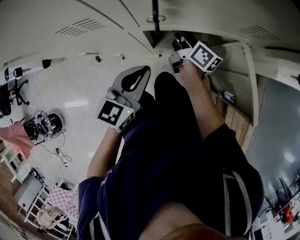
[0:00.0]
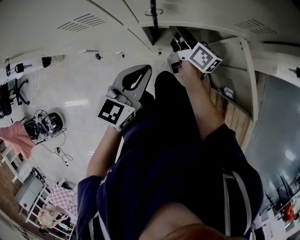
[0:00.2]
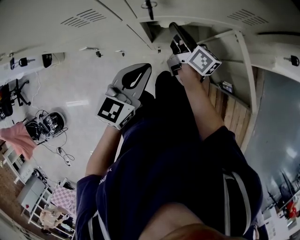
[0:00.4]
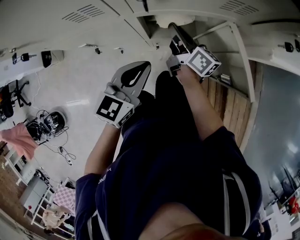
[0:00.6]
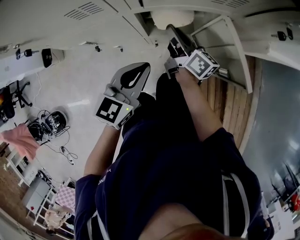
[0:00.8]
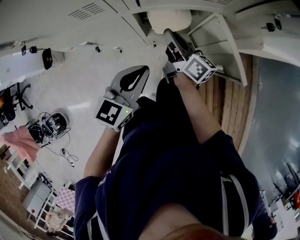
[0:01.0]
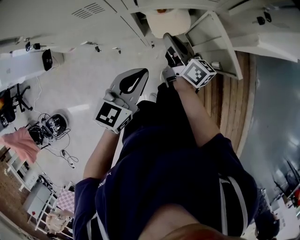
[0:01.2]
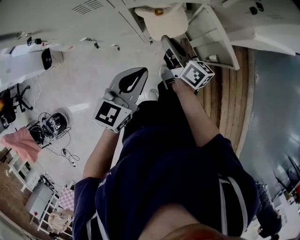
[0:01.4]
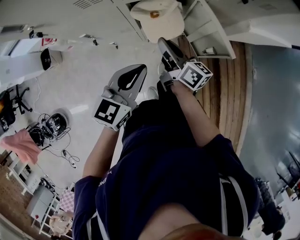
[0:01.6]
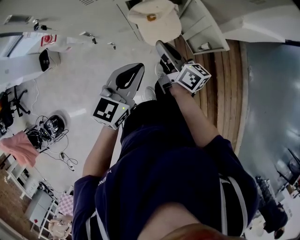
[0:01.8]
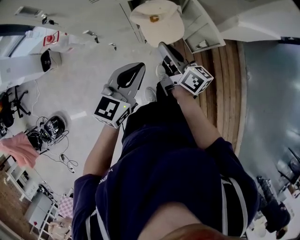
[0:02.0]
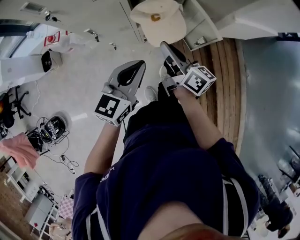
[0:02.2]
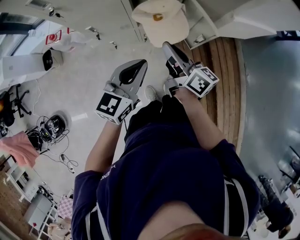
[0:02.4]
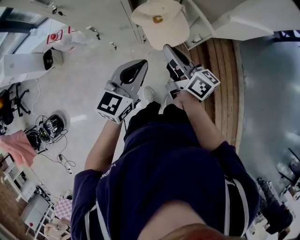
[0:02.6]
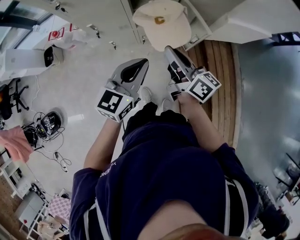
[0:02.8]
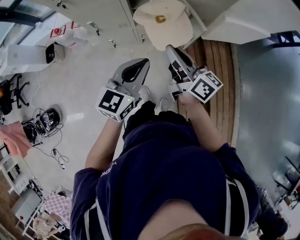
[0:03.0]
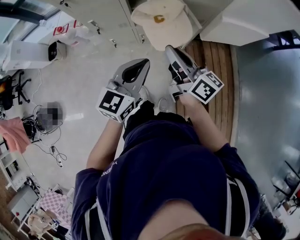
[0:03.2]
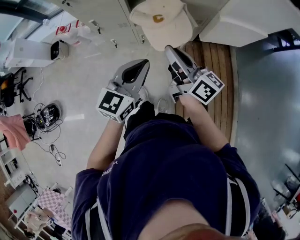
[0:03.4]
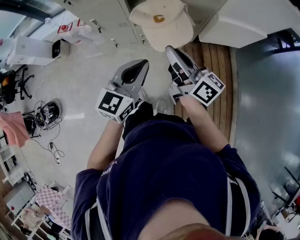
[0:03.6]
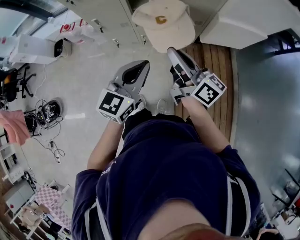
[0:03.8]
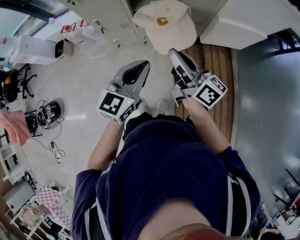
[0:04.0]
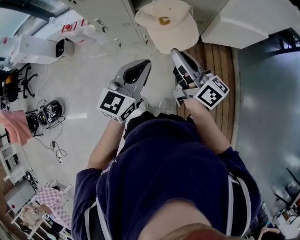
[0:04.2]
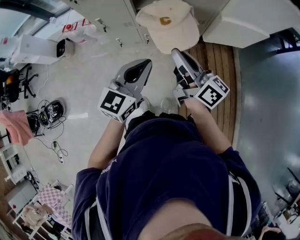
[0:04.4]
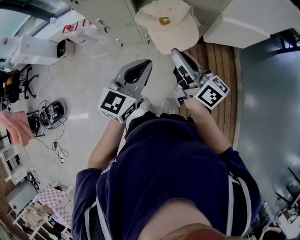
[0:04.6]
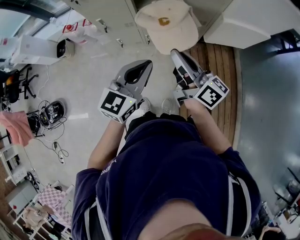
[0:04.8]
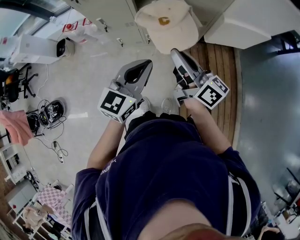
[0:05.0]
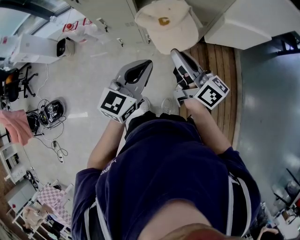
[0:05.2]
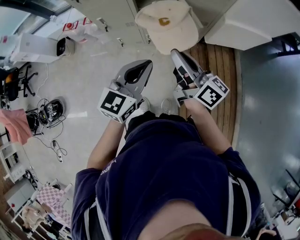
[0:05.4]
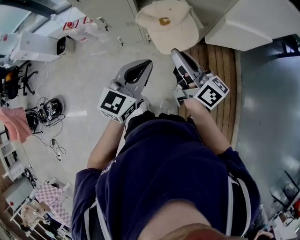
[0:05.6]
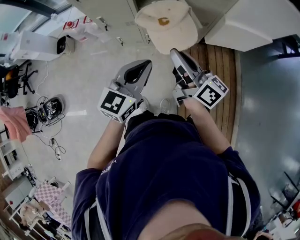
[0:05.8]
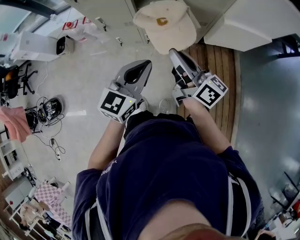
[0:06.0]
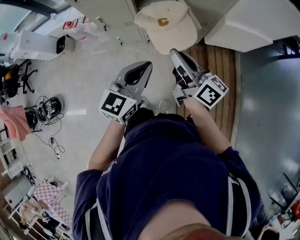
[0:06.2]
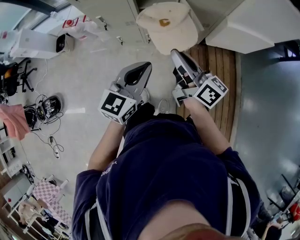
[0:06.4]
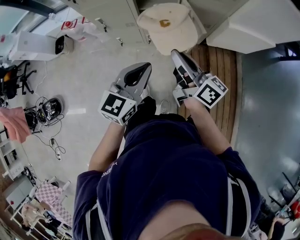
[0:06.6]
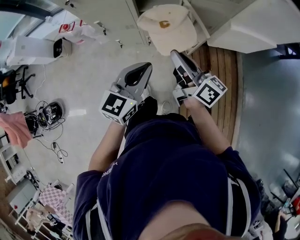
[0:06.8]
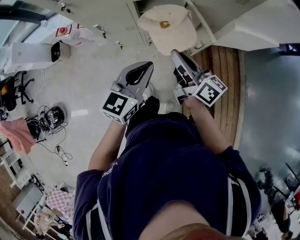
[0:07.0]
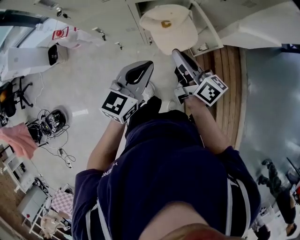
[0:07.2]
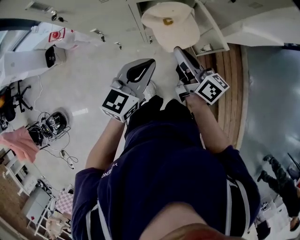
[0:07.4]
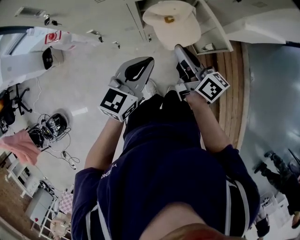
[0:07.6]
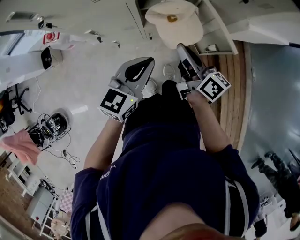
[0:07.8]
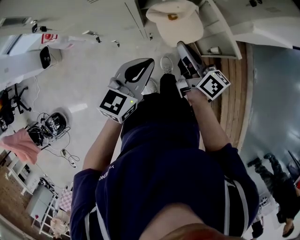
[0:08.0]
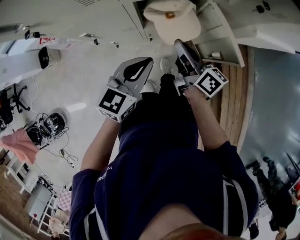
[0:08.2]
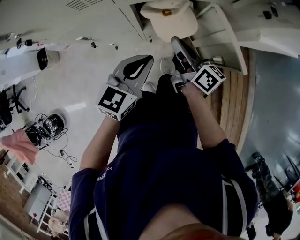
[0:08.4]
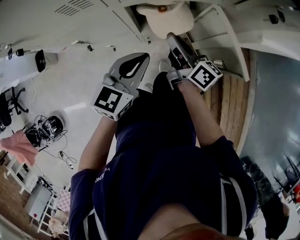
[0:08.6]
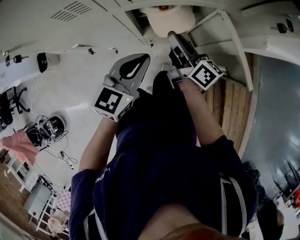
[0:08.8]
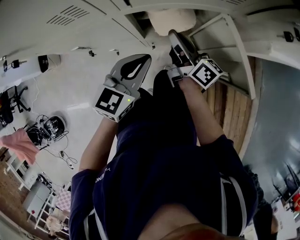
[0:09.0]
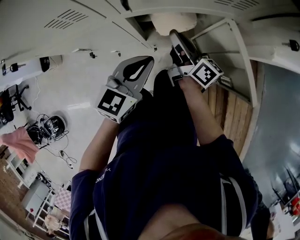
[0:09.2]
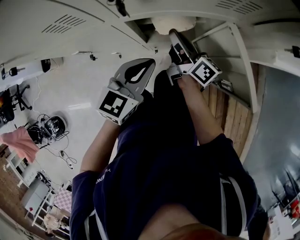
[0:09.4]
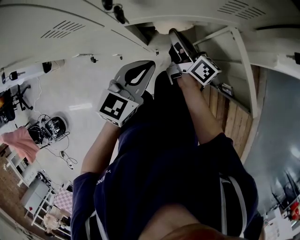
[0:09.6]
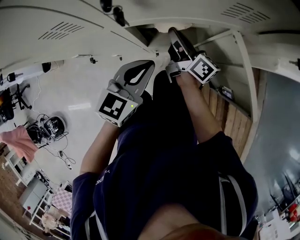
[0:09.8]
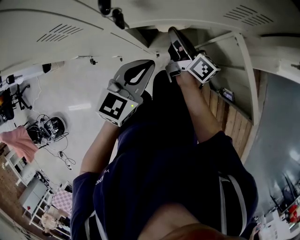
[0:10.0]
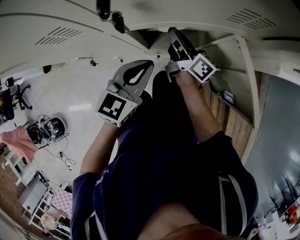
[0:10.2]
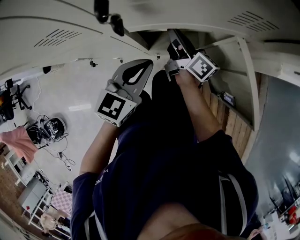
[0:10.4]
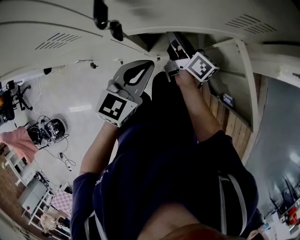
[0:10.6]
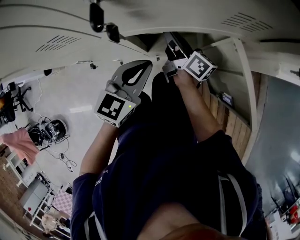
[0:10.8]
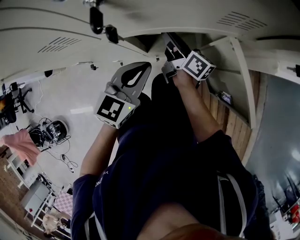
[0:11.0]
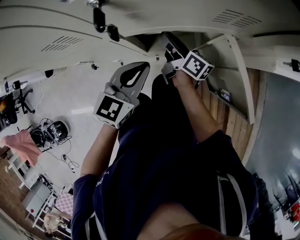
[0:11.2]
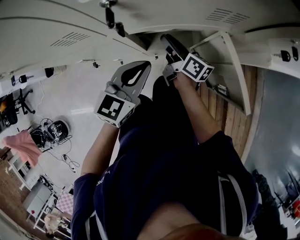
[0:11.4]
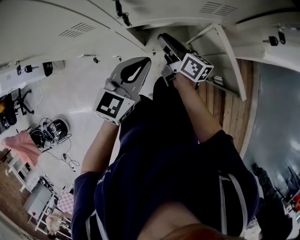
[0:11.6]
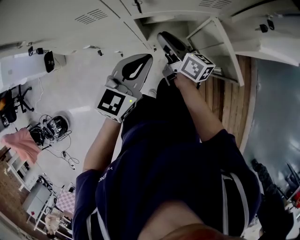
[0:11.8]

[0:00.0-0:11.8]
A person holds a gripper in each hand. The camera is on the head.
0:00.0 to 0:01.4: The grippers both shift backward and upward by some 20 cm.
0:01.4 to 0:03.0: The grippers both shift backward, upward and to the right by about 25 cm.
0:03.0 to 0:04.4: The right gripper moves backward and upward, roughly 10 cm; the left gripper goes approximately 5 cm backward.
0:04.4 to 0:06.0: The grippers move only a little.
0:06.0 to 0:07.4: The left gripper goes roughly 20 cm forward, to the left and downward. Meanwhile the right gripper heads forward, downward and to the left, covering about 20 cm.
0:07.4 to 0:08.8: Both grippers move forward and downward, some 20 cm.
0:08.8 to 0:10.4: The right gripper heads forward and downward, covering some 15 cm. The left gripper is displaced forward and downward by roughly 10 cm.
0:10.4 to 0:11.8: The grippers both shift upward and backward by some 15 cm.

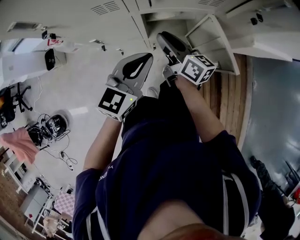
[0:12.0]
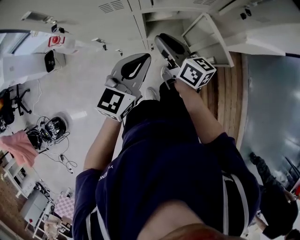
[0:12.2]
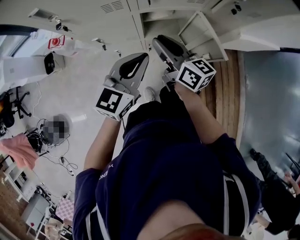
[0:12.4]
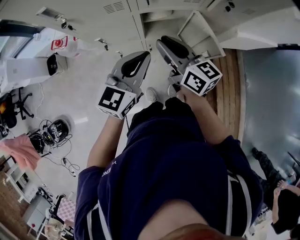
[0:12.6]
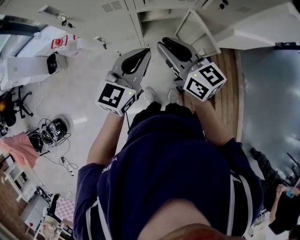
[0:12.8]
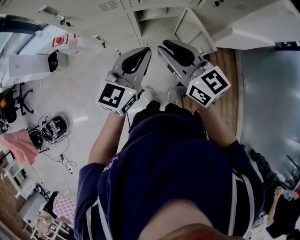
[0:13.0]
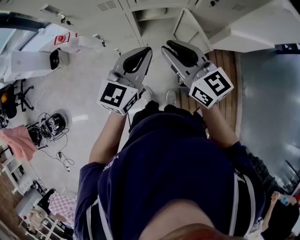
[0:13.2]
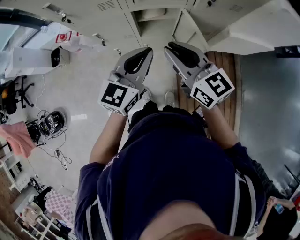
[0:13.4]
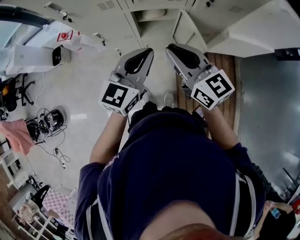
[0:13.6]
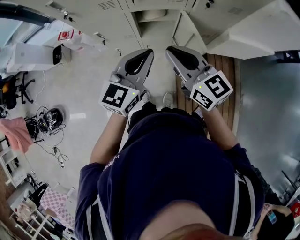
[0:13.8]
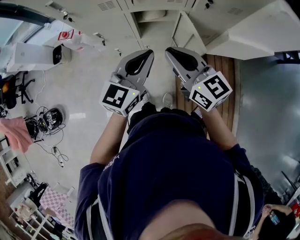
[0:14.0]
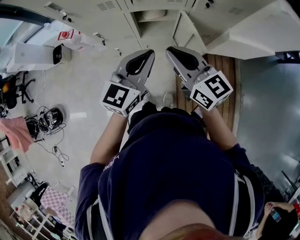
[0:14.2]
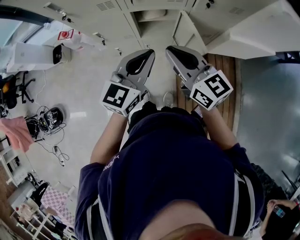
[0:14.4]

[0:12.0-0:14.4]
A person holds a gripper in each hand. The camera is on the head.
0:12.0 to 0:13.2: The left gripper heads upward, backward and to the right, covering roughly 15 cm. Meanwhile the right gripper heads upward and backward, covering roughly 25 cm, and turns by roughly 30 degrees.
0:13.2 to 0:14.4: There are only small adjustments of the grippers.

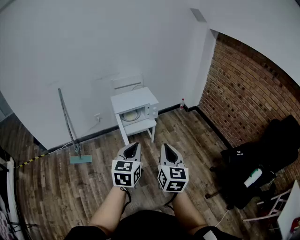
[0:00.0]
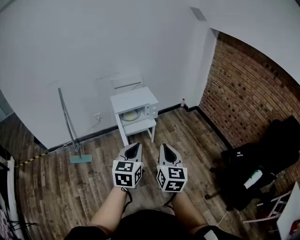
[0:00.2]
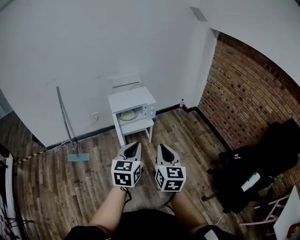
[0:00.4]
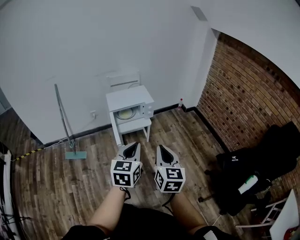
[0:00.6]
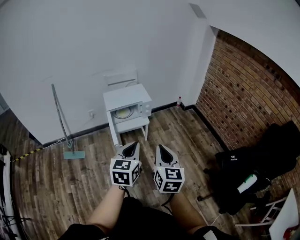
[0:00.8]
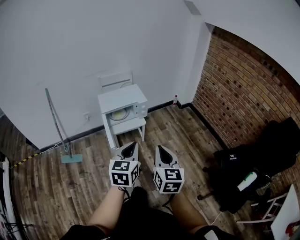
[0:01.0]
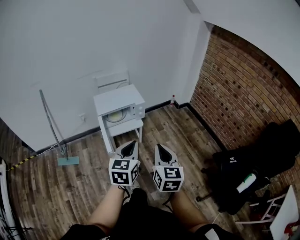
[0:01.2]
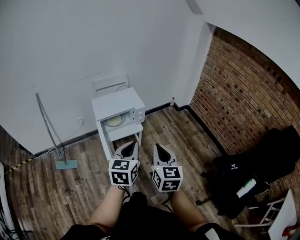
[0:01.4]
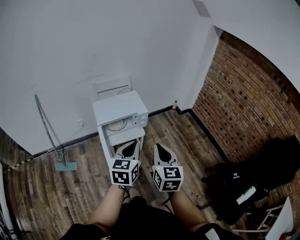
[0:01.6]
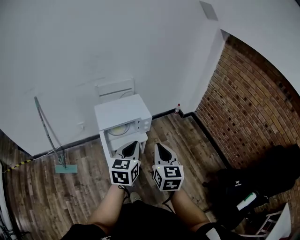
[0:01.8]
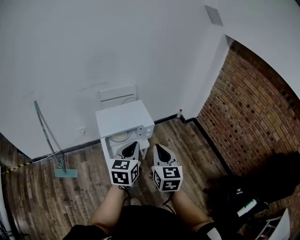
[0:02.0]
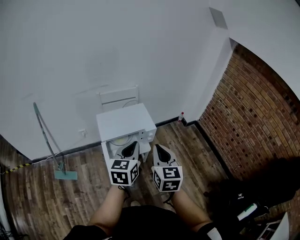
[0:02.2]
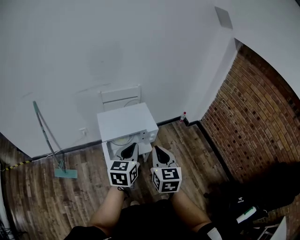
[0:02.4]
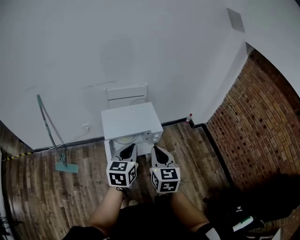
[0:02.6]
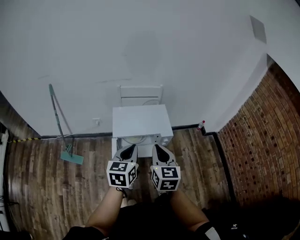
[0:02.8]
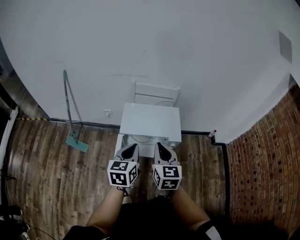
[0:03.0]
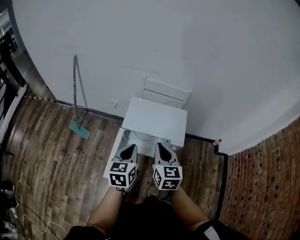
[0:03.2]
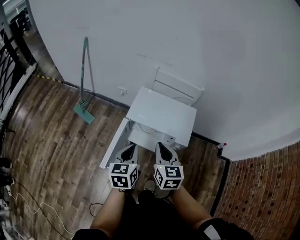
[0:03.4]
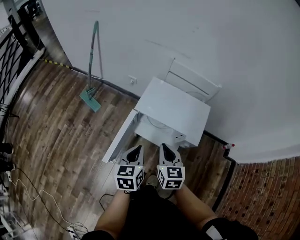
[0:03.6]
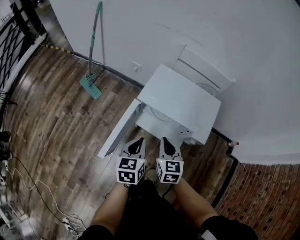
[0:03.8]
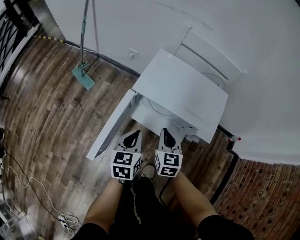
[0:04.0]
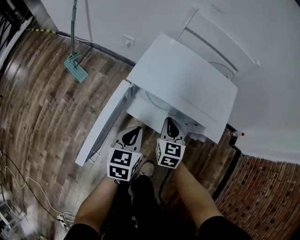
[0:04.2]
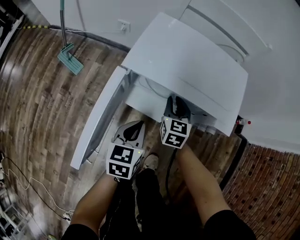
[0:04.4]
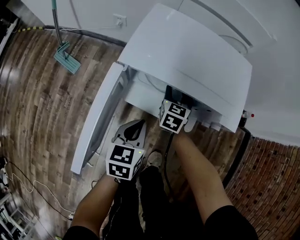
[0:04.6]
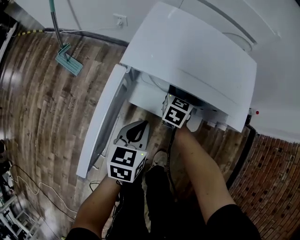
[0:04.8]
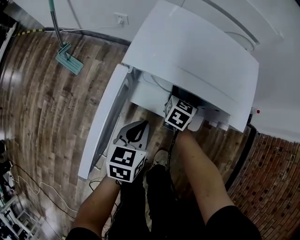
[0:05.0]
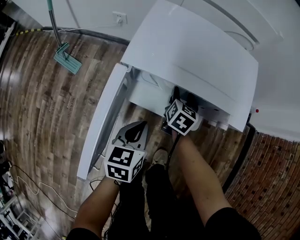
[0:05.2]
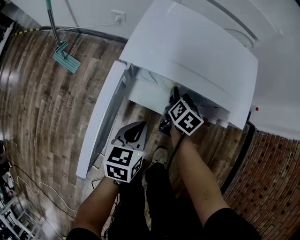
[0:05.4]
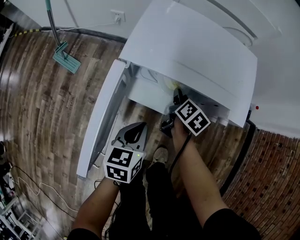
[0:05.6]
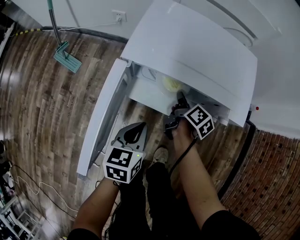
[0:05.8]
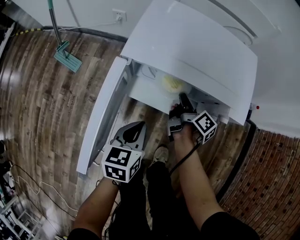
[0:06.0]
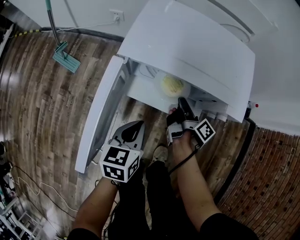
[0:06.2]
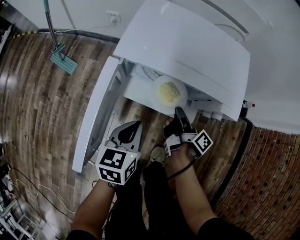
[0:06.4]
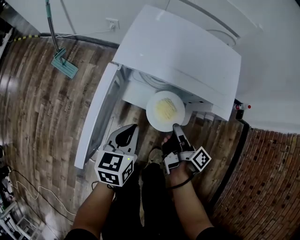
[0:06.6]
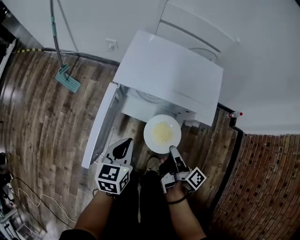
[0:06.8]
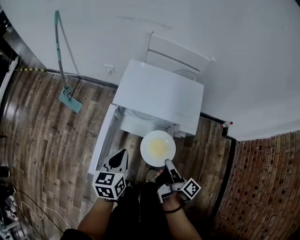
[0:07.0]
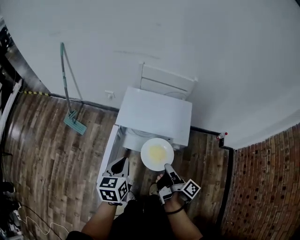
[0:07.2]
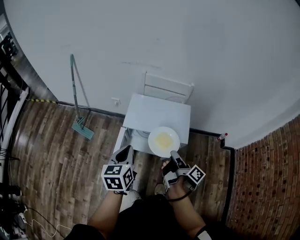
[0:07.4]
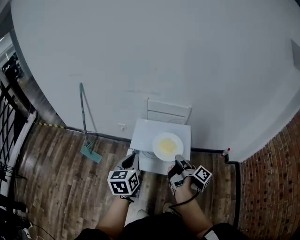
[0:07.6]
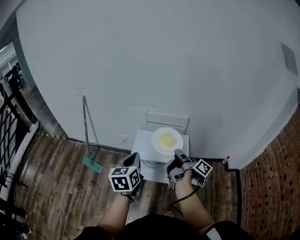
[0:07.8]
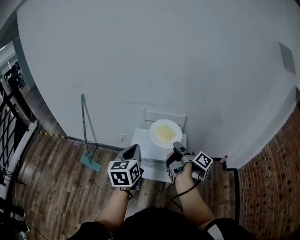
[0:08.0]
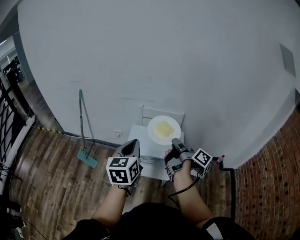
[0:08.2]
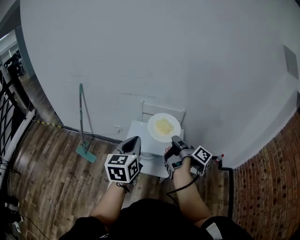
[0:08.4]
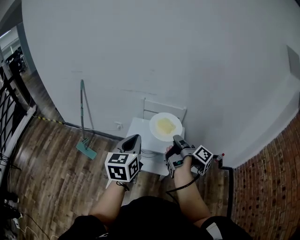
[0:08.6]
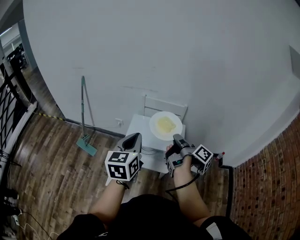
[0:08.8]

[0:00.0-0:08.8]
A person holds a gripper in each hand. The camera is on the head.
0:00.0 to 0:01.4: The left gripper moves forward and to the right, some 20 cm; the right gripper is displaced forward by some 15 cm.
0:01.4 to 0:03.0: The right gripper ends up about 35 cm from where it was, and rotates some 30 degrees. The left gripper changes place by some 30 cm, and turns by some 30 degrees.
0:03.0 to 0:04.4: The two grippers go roughly 40 cm downward.
0:04.4 to 0:05.8: The right gripper moves downward, about 5 cm, rotates around the line of its fingers by roughly 60 degrees, clockwise from behind, and opens, then closes again.
0:05.8 to 0:07.4: Both grippers travel together upward, roughly 35 cm. The right gripper turns by about 40 degrees.
0:07.4 to 0:08.8: Both grippers move upward, some 15 cm.
